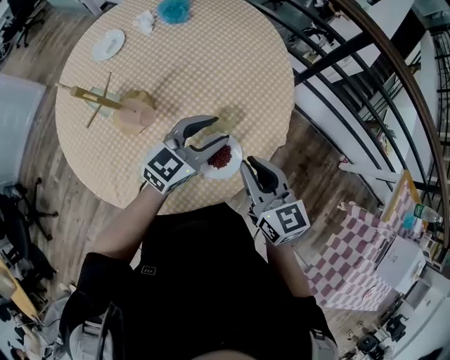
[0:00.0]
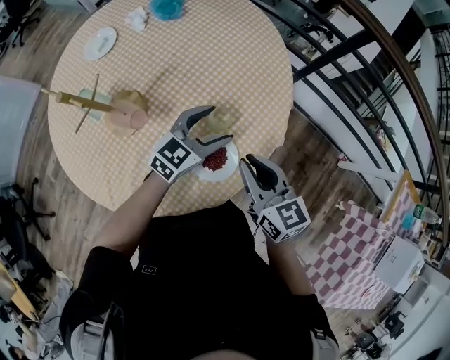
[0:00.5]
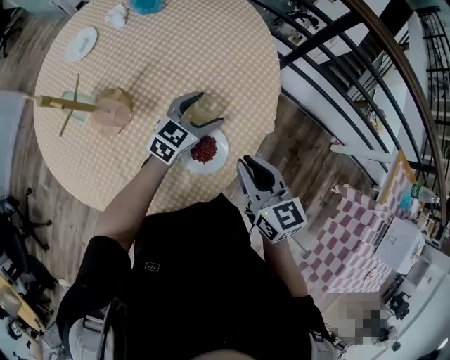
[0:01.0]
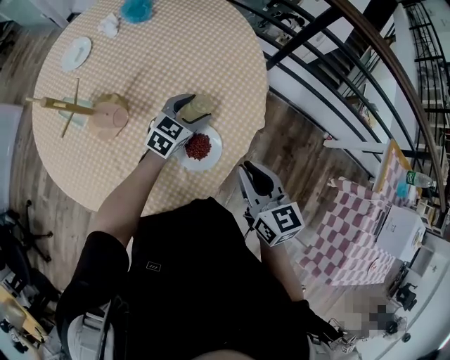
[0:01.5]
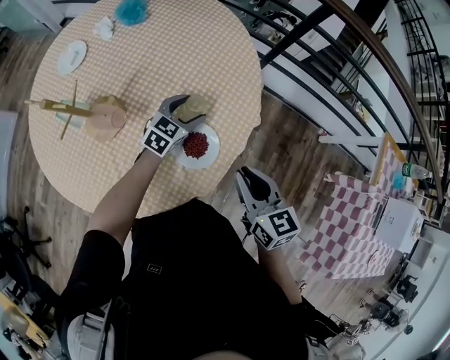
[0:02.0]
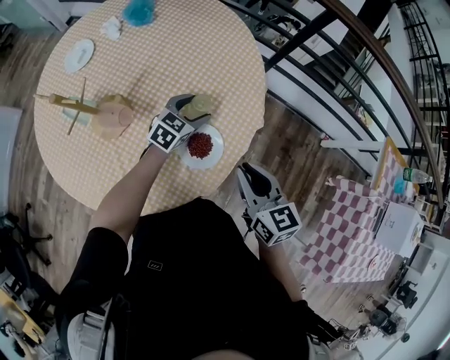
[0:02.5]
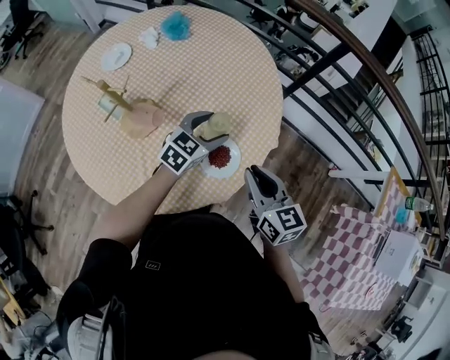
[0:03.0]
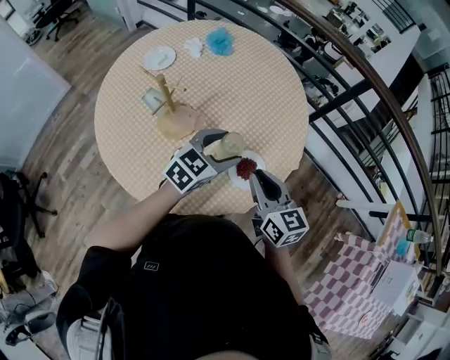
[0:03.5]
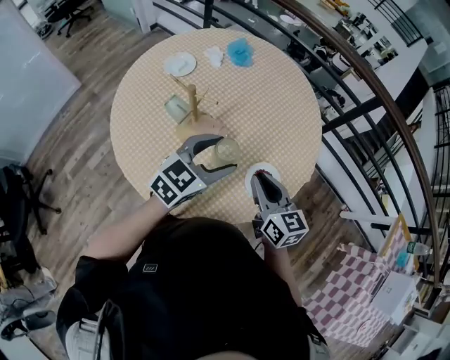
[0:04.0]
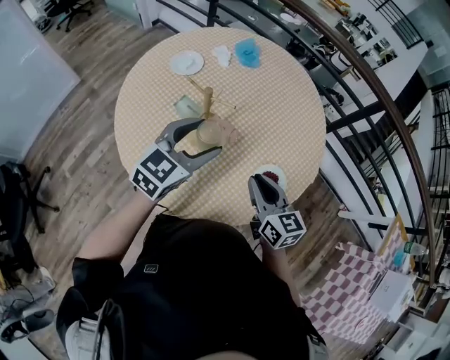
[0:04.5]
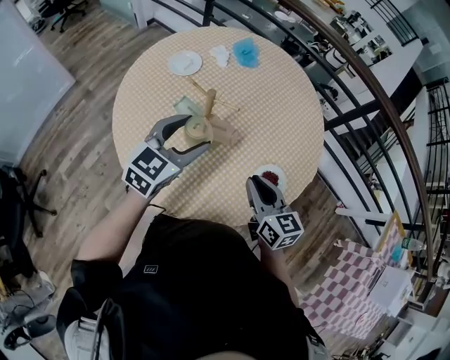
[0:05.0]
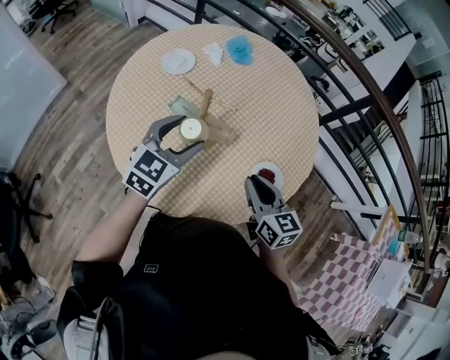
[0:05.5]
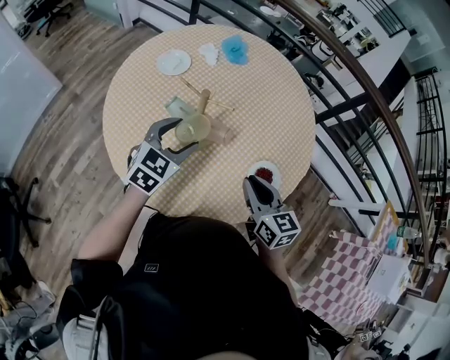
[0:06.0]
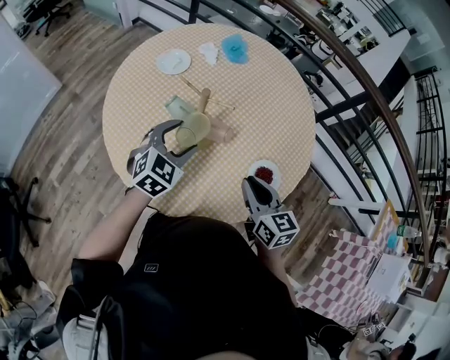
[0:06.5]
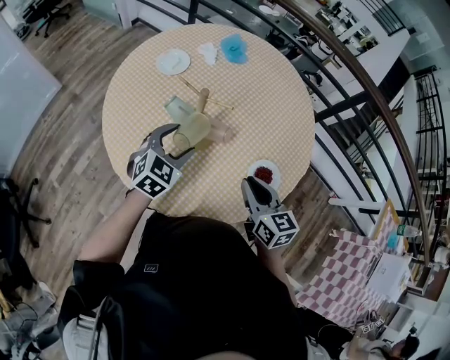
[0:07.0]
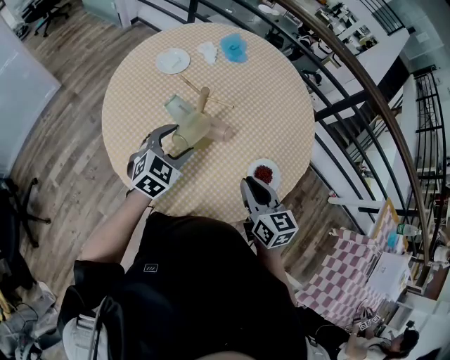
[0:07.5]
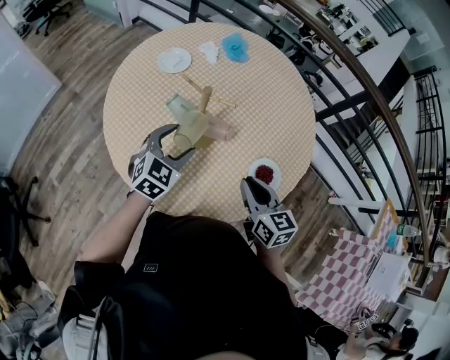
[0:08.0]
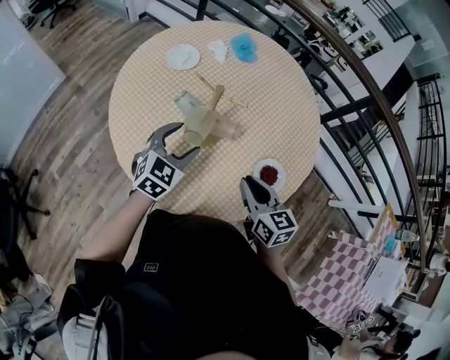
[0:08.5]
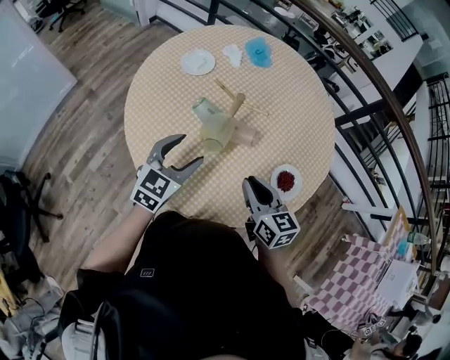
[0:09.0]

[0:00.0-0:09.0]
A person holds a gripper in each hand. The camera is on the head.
0:00.0 to 0:02.0: The right gripper moves backward and to the right, about 10 cm. Meanwhile the left gripper moves downward, roughly 15 cm, and opens up.
0:02.0 to 0:04.5: The left gripper heads to the left, upward and backward, covering about 40 cm; the right gripper is displaced to the left by roughly 20 cm.
0:04.5 to 0:07.0: The left gripper goes about 10 cm downward and to the left, and swivels some 20 degrees.
0:07.0 to 0:09.0: Both grippers move to the left, approximately 5 cm.

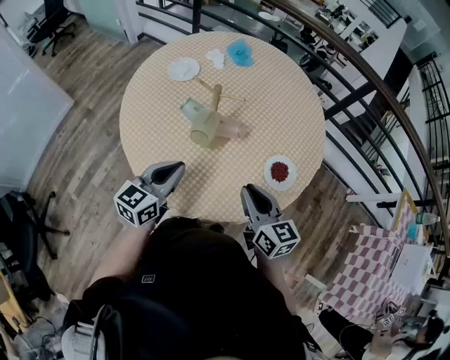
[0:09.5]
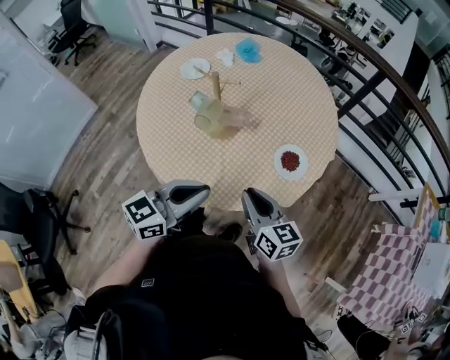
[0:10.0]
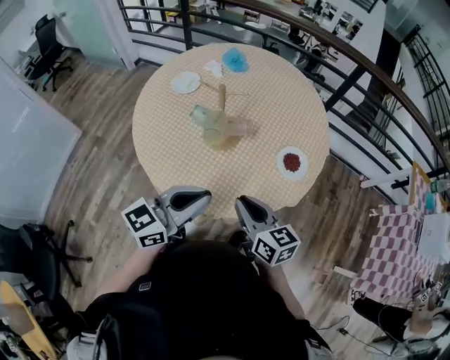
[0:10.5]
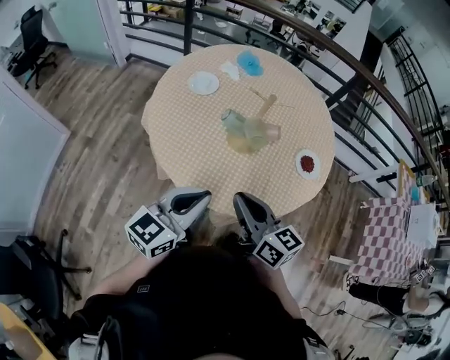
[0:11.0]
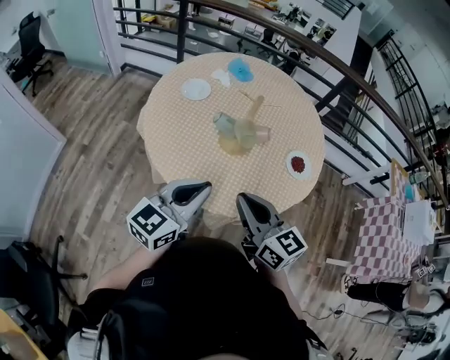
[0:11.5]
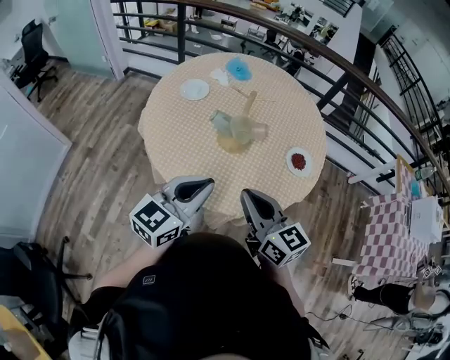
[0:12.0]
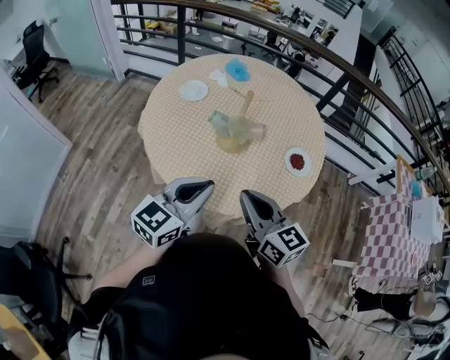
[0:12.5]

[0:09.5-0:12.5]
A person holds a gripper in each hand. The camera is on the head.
0:09.5 to 0:11.0: The left gripper goes roughly 20 cm to the left, backward and upward, and turns by about 20 degrees, while the right gripper is displaced to the left and backward by some 25 cm.
0:11.0 to 0:12.5: The two grippers go about 5 cm to the right.

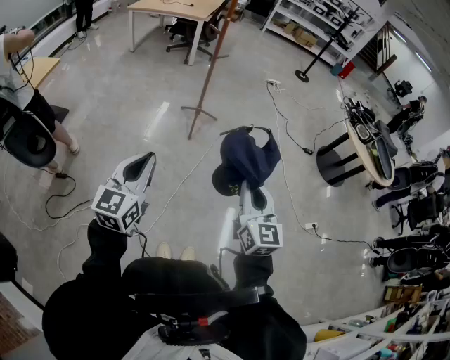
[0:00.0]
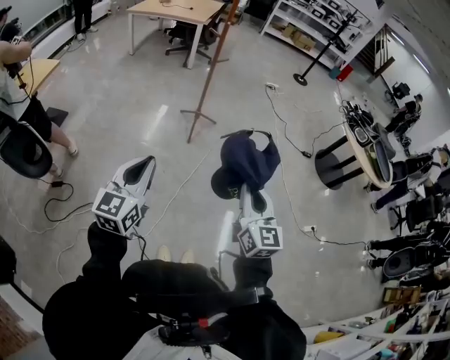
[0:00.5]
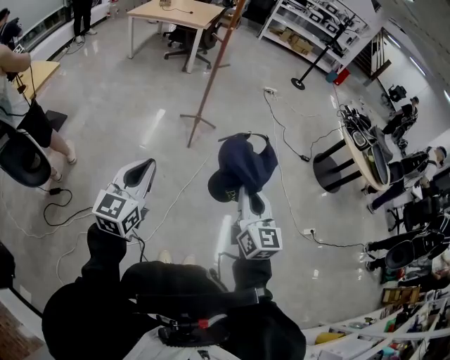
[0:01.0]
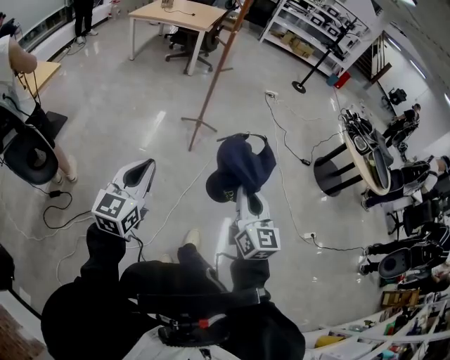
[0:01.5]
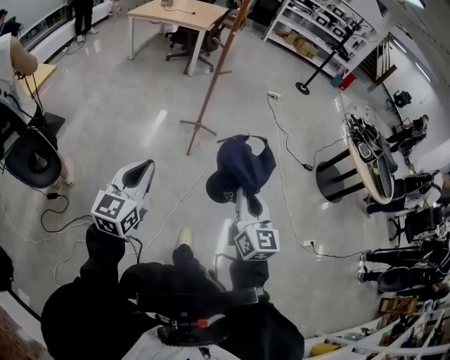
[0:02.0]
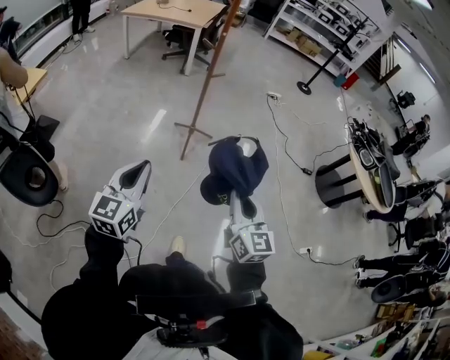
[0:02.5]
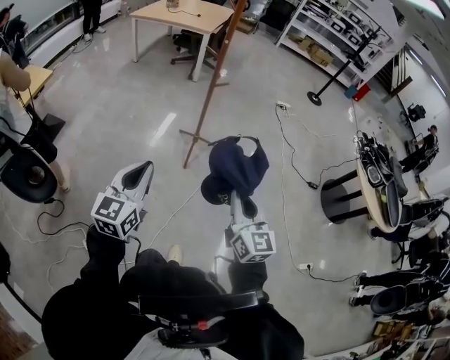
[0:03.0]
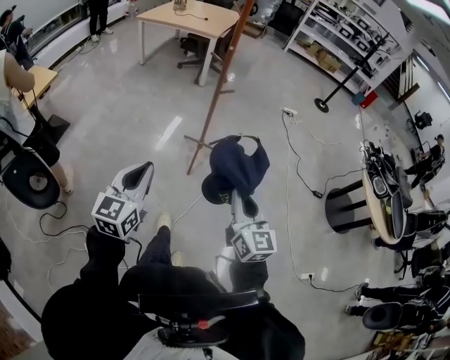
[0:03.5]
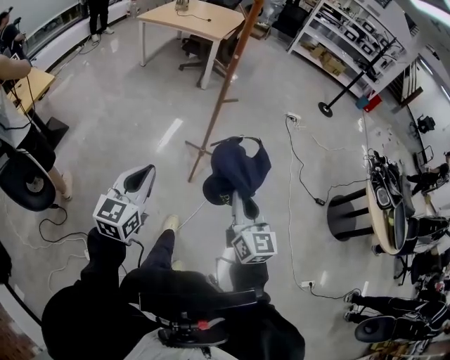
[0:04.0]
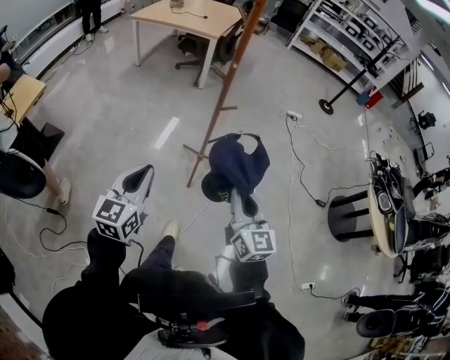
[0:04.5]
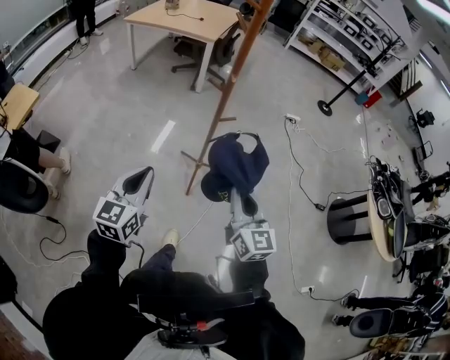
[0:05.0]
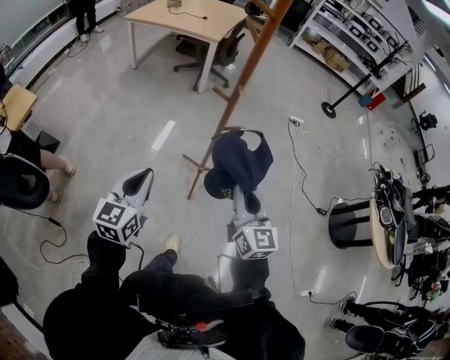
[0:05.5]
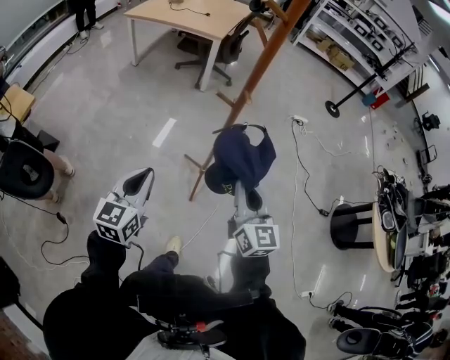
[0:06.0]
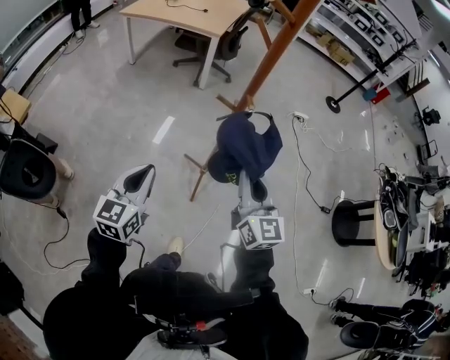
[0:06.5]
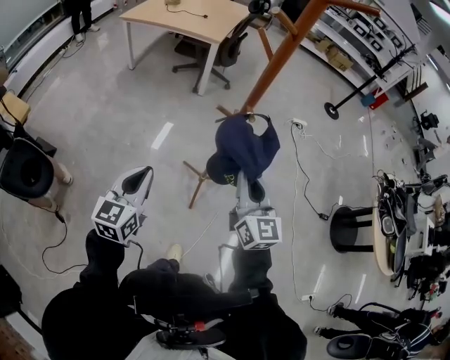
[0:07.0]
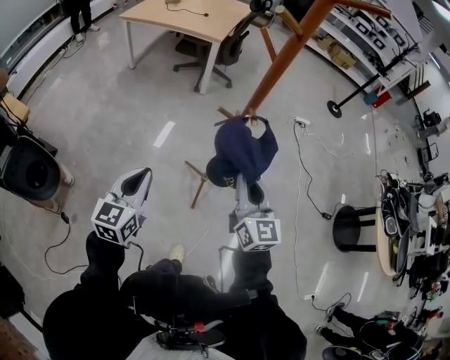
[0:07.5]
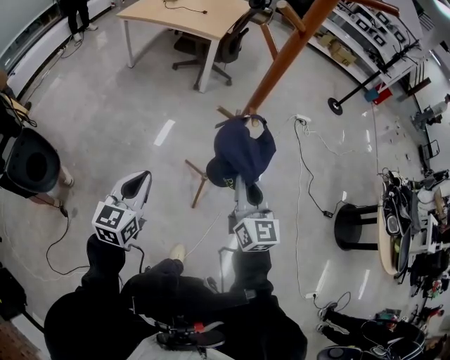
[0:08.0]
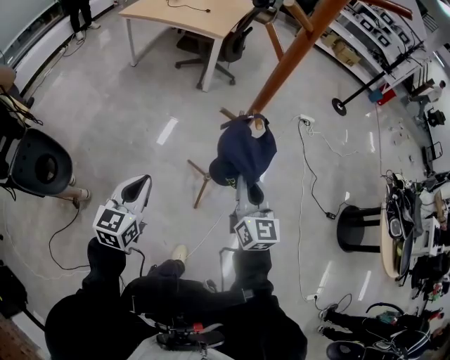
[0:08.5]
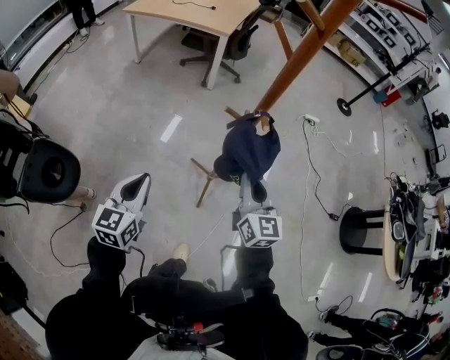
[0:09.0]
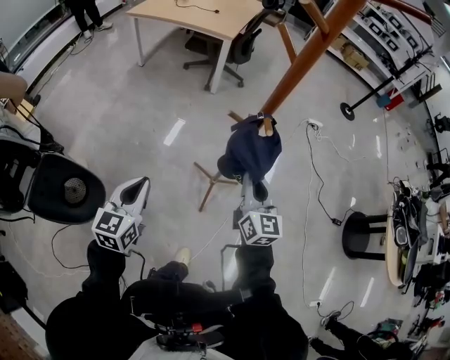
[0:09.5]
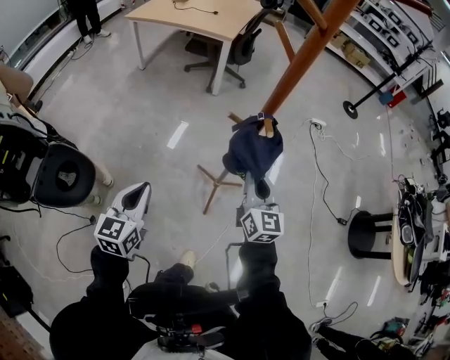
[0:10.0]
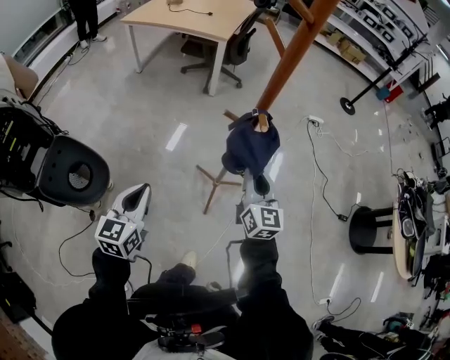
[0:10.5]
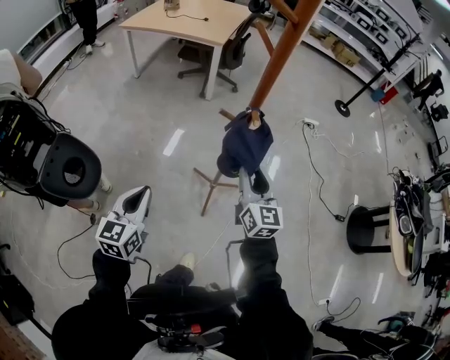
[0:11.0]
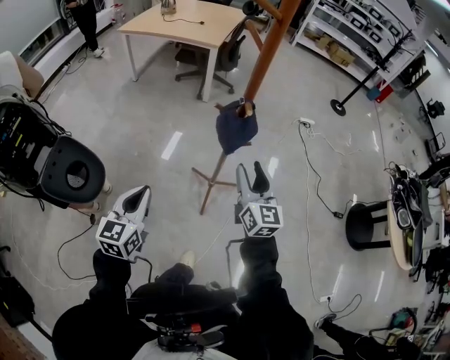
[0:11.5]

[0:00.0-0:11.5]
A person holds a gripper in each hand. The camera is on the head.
0:00.0 to 0:02.0: The grippers both shift forward by approximately 10 cm.
0:02.0 to 0:04.0: The two grippers go some 25 cm forward.
0:04.0 to 0:06.0: The grippers both shift forward by roughly 25 cm.
0:06.0 to 0:07.5: Both grippers travel together forward, approximately 5 cm.
0:07.5 to 0:09.5: The left gripper changes place by some 5 cm. The right gripper is displaced downward and forward by roughly 10 cm.
0:09.5 to 0:11.5: The right gripper changes place by approximately 5 cm, and opens up, while the left gripper is displaced backward by roughly 5 cm.

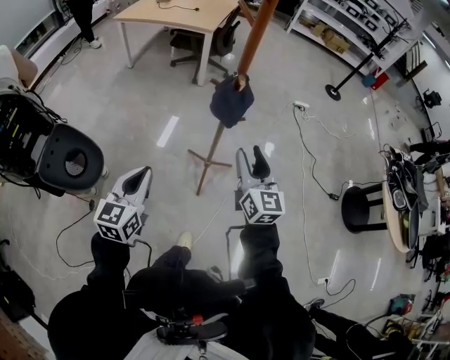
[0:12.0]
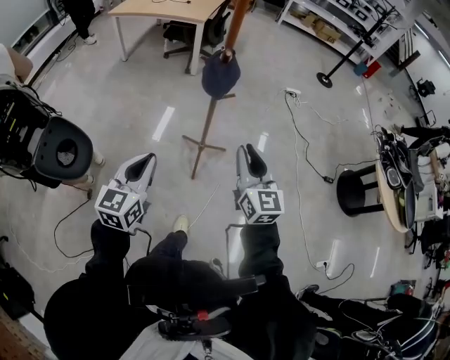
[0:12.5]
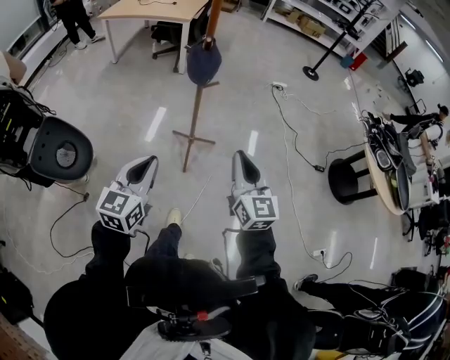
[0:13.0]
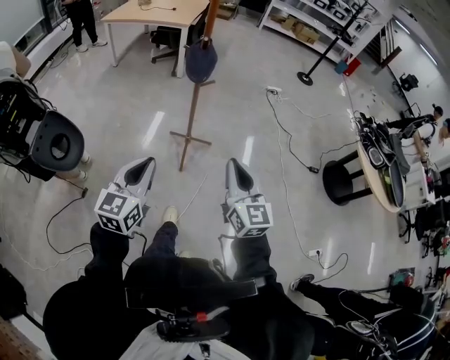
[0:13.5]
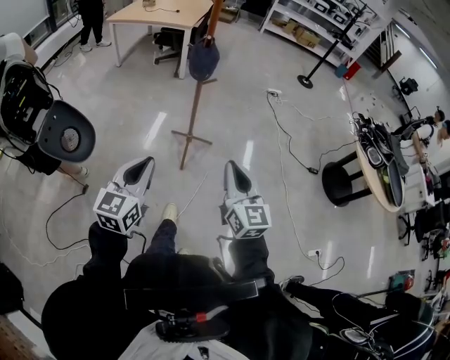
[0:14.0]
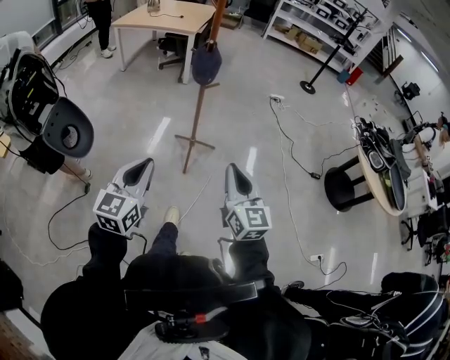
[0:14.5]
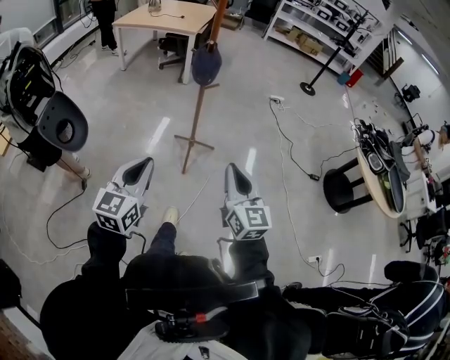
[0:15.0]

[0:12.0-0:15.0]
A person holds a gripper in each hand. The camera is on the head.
0:12.0 to 0:13.5: The left gripper moves backward and to the right, about 20 cm, while the right gripper shifts approximately 25 cm backward, and closes.
0:13.5 to 0:15.0: Both grippers move backward, roughly 5 cm.
